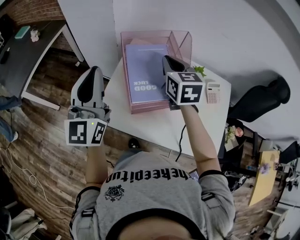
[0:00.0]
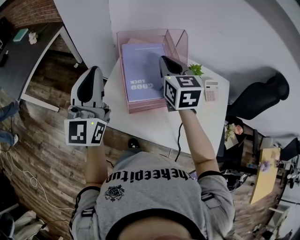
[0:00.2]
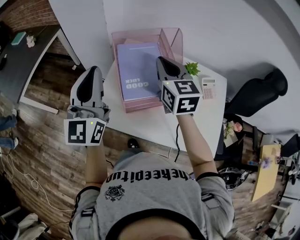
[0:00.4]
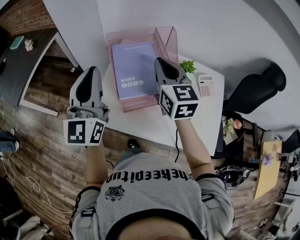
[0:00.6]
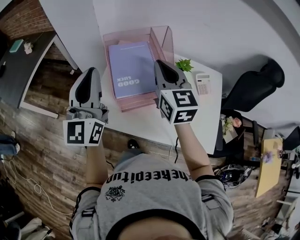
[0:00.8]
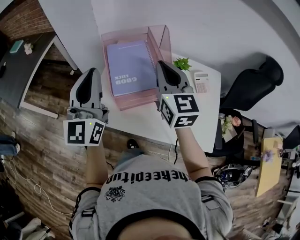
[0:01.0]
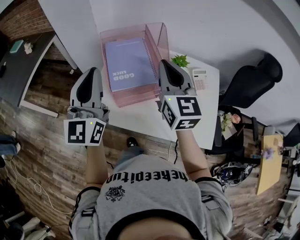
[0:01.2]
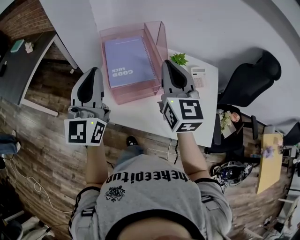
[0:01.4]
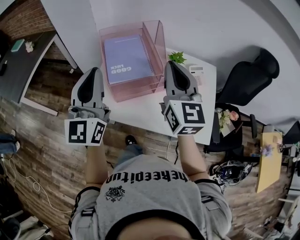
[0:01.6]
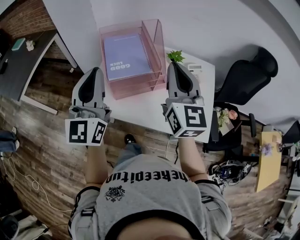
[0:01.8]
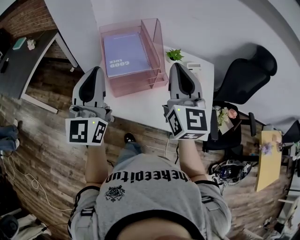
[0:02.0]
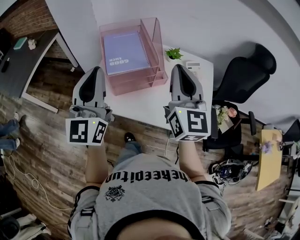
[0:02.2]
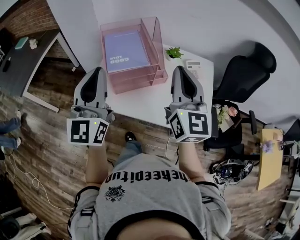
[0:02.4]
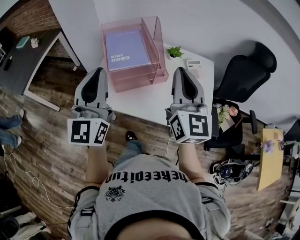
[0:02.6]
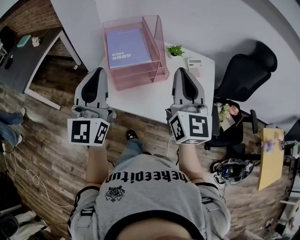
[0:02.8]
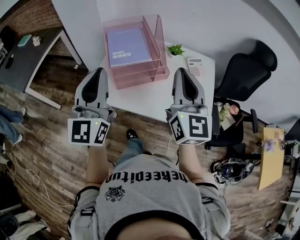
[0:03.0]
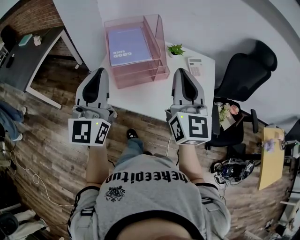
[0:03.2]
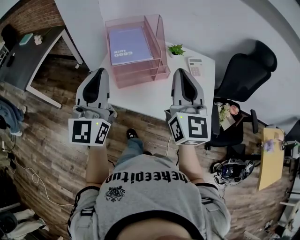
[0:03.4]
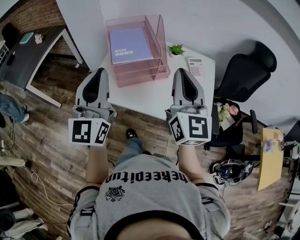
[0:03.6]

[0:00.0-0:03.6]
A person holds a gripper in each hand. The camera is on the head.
0:00.0 to 0:01.8: The right gripper travels backward, to the right and upward by some 25 cm, and turns by about 30 degrees. Meanwhile the left gripper is displaced backward and to the right by approximately 15 cm.
0:01.8 to 0:03.6: The grippers both shift backward by some 10 cm.

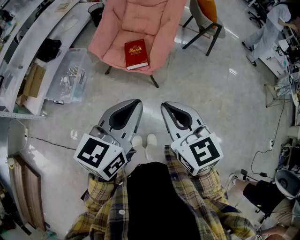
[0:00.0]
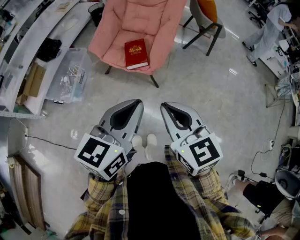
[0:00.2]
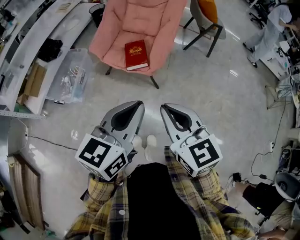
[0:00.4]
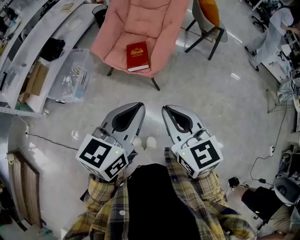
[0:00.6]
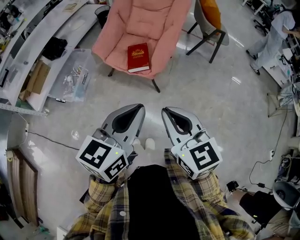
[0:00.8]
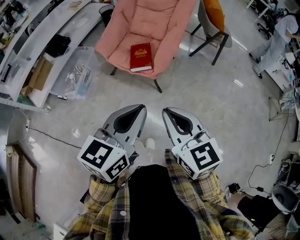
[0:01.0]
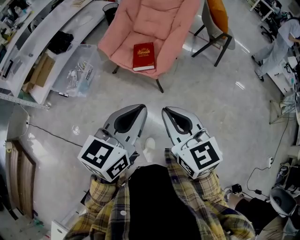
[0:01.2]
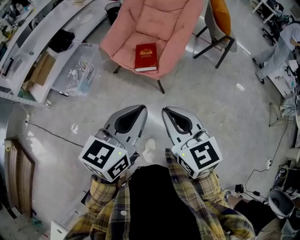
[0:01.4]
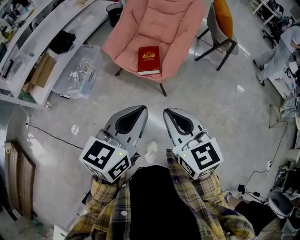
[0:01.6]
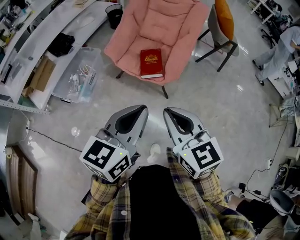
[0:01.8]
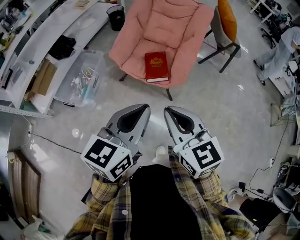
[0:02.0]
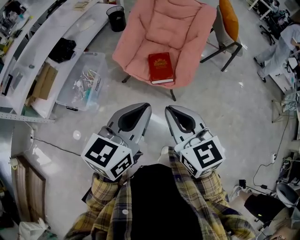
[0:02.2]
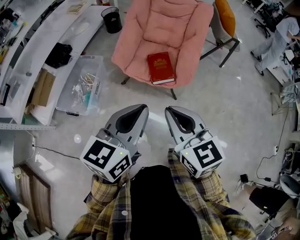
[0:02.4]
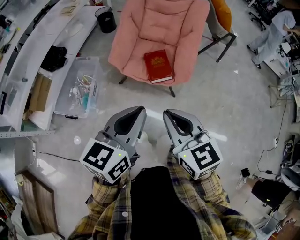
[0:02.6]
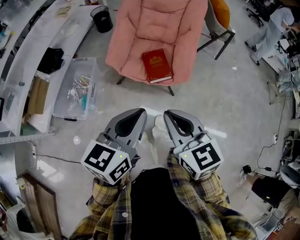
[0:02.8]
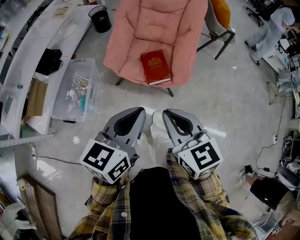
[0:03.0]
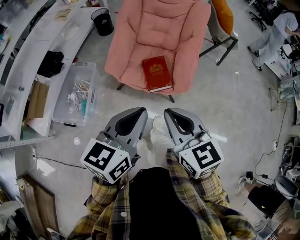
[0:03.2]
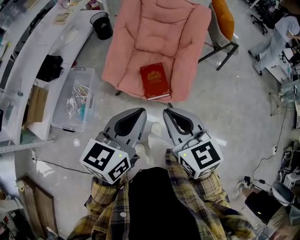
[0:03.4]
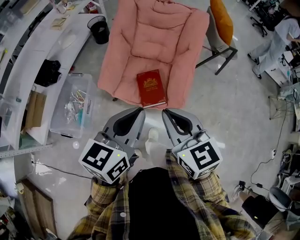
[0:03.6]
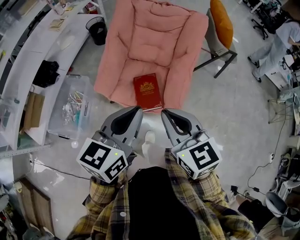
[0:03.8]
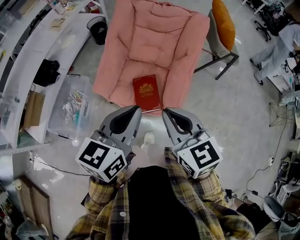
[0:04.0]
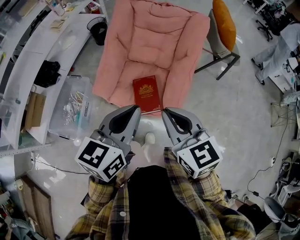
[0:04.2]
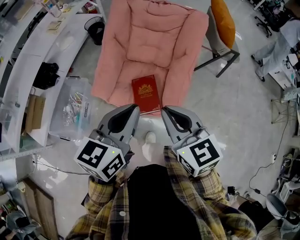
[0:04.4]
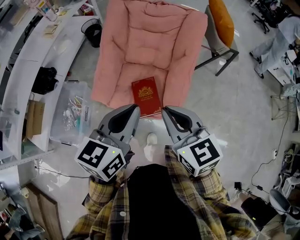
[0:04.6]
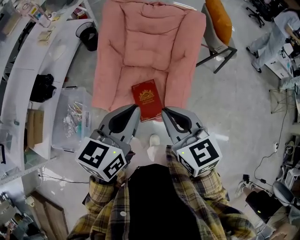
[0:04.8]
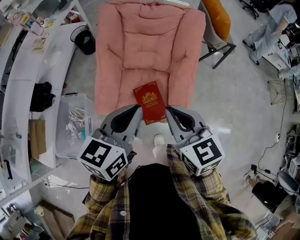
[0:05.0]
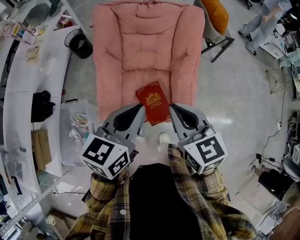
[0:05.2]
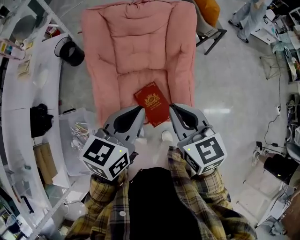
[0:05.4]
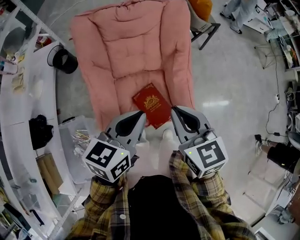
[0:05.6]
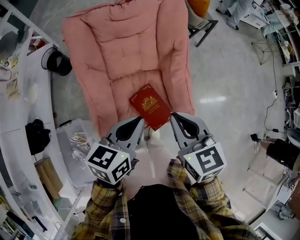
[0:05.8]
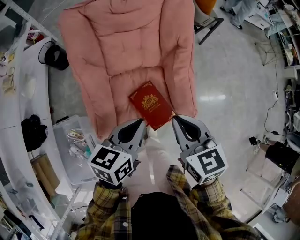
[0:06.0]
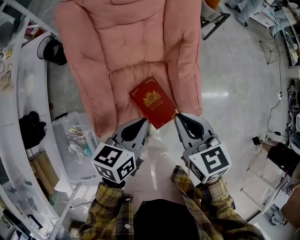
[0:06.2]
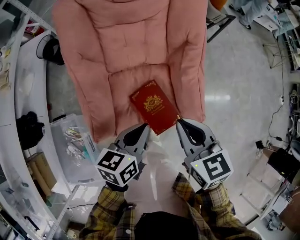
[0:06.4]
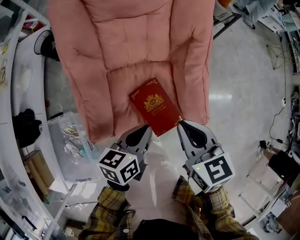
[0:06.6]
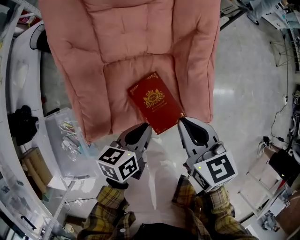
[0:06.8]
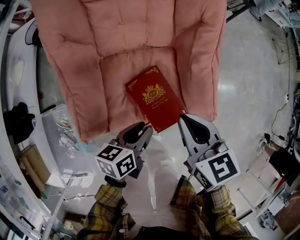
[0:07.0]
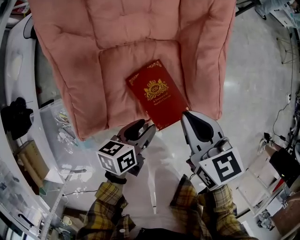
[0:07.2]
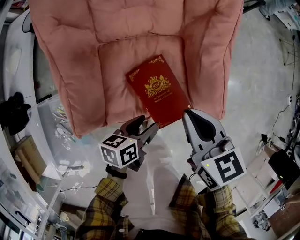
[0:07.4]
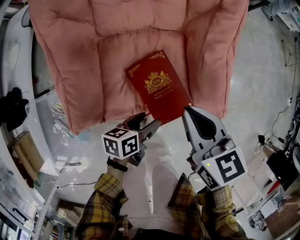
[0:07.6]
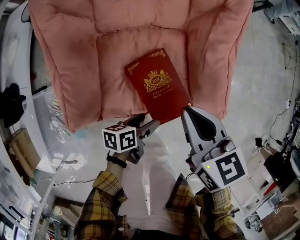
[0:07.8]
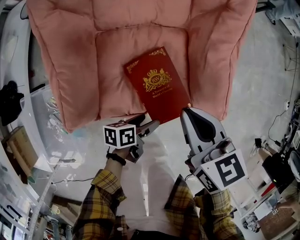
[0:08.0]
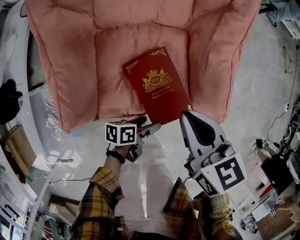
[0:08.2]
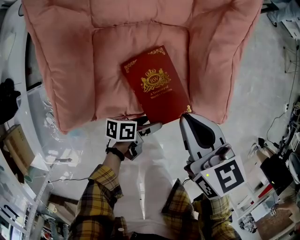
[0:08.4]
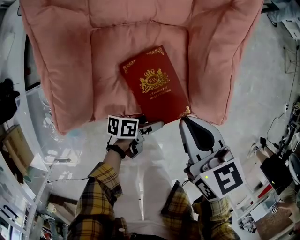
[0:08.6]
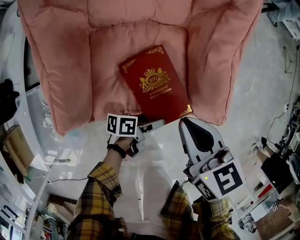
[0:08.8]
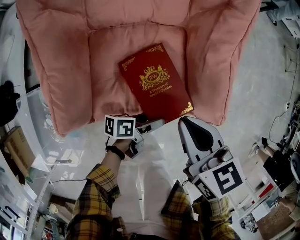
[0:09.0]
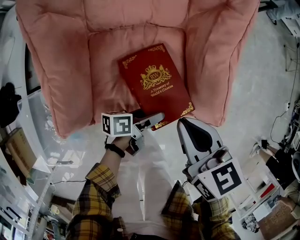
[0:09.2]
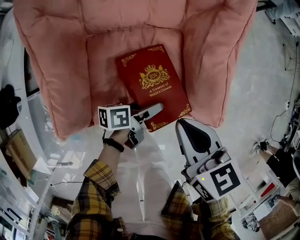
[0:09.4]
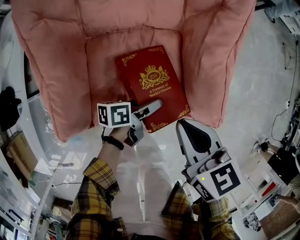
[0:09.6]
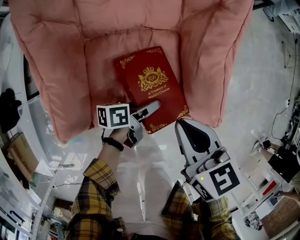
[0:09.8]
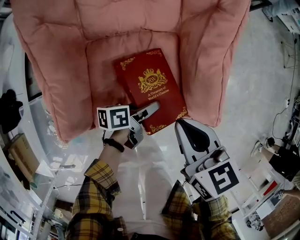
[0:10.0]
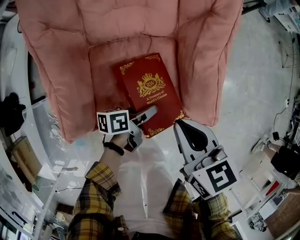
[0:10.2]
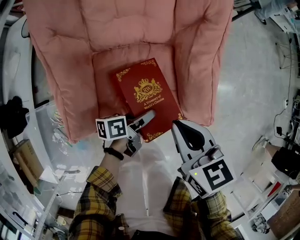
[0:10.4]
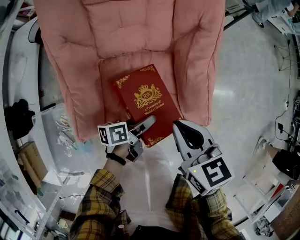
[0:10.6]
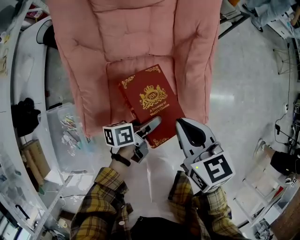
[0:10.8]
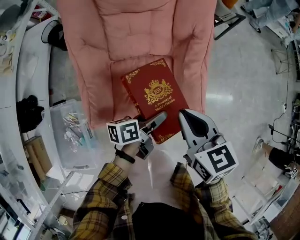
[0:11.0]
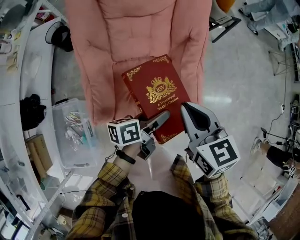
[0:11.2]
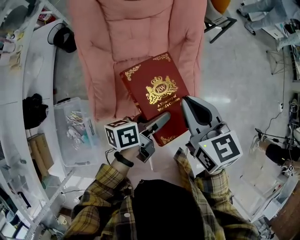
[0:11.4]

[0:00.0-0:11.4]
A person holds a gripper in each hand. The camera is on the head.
0:00.0 to 0:01.4: There are only small adjustments of the grippers.
0:01.4 to 0:02.8: The two grippers go approximately 25 cm to the left and forward.
0:02.8 to 0:04.2: Both grippers travel together forward and to the right, roughly 25 cm.
0:04.2 to 0:05.6: The right gripper shifts by some 15 cm, and swivels some 30 degrees. The left gripper ends up some 20 cm from where it was, and swivels approximately 30 degrees.
0:05.6 to 0:07.2: The grippers both shift downward by about 30 cm. The left gripper swivels about 30 degrees, and opens its fingers.
0:07.2 to 0:08.6: The left gripper heads downward and to the right, covering about 15 cm, turns by approximately 30 degrees, and opens, while the right gripper moves some 5 cm.
0:08.6 to 0:10.0: The left gripper travels forward and to the left by about 10 cm.
0:10.0 to 0:11.4: Both grippers move upward, some 30 cm.

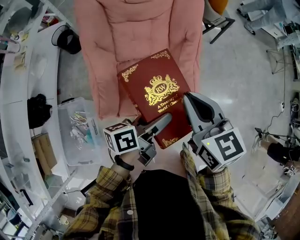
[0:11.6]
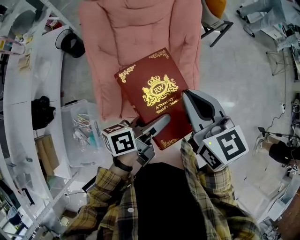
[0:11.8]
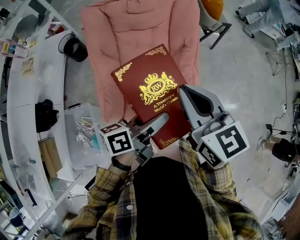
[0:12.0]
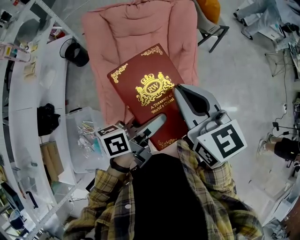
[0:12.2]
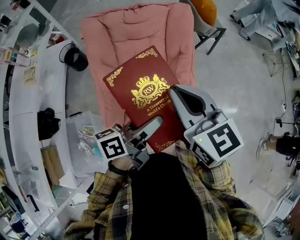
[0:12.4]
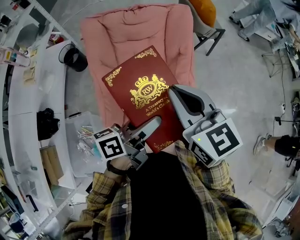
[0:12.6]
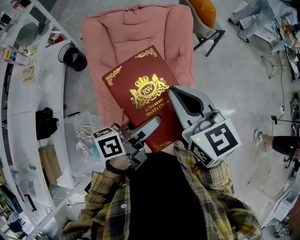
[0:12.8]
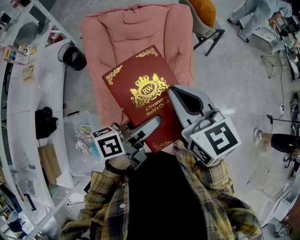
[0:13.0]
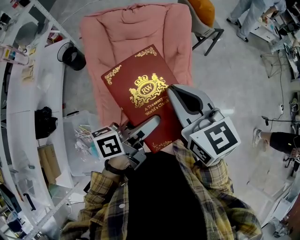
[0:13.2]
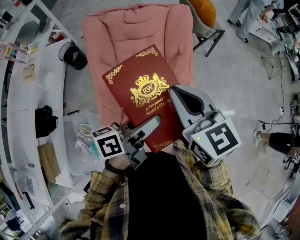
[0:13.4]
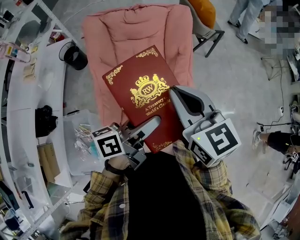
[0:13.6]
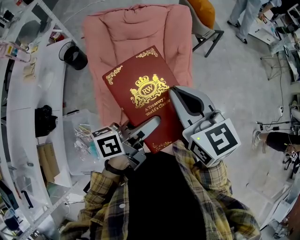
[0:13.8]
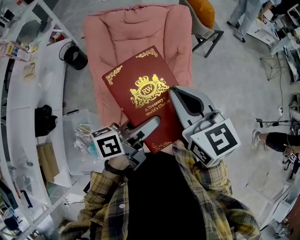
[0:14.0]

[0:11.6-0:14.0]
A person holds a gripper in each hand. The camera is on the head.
0:11.6 to 0:12.8: The two grippers go some 10 cm upward.
0:12.8 to 0:14.0: Neither gripper changes place.

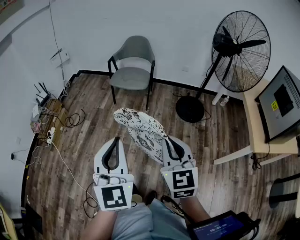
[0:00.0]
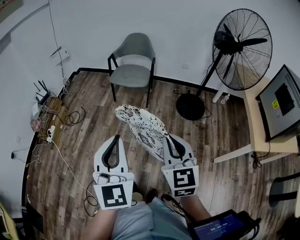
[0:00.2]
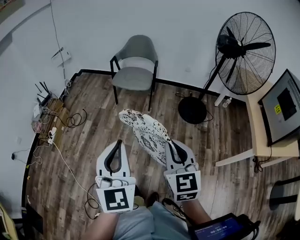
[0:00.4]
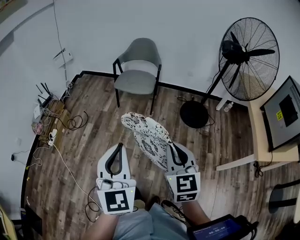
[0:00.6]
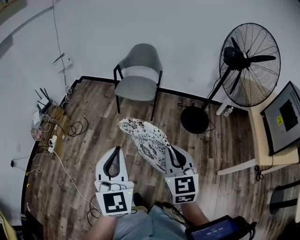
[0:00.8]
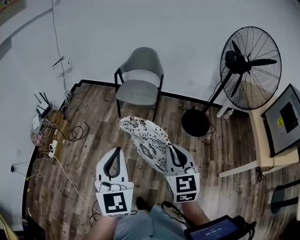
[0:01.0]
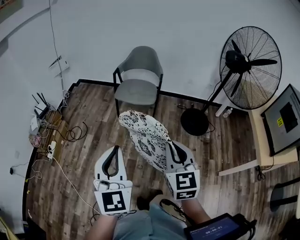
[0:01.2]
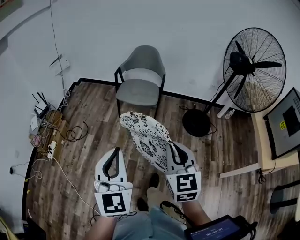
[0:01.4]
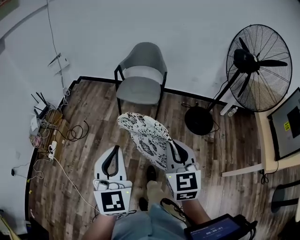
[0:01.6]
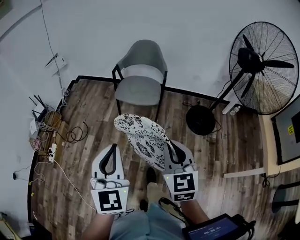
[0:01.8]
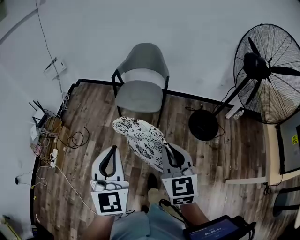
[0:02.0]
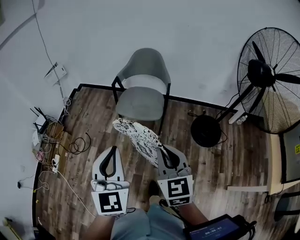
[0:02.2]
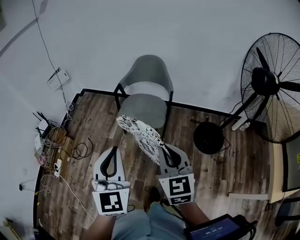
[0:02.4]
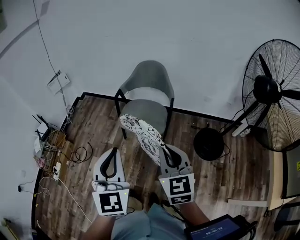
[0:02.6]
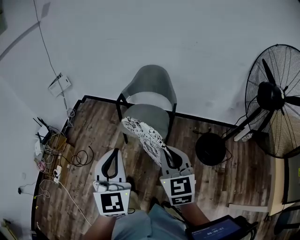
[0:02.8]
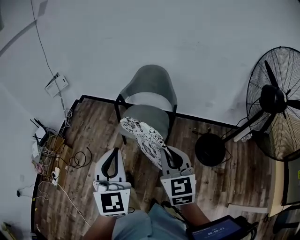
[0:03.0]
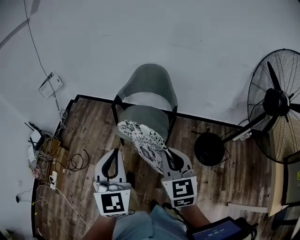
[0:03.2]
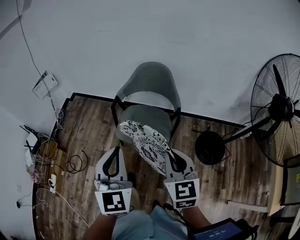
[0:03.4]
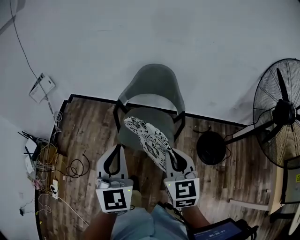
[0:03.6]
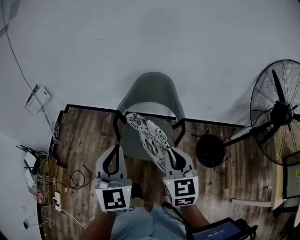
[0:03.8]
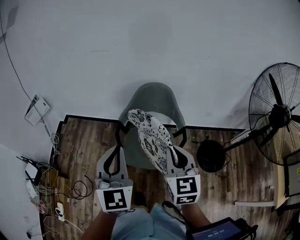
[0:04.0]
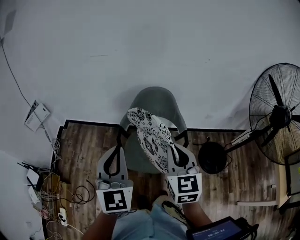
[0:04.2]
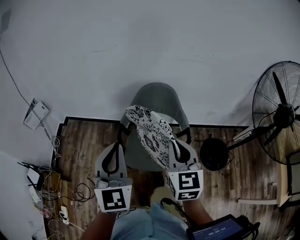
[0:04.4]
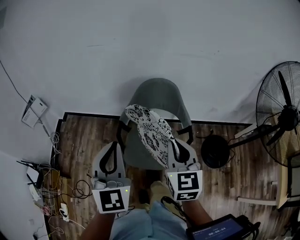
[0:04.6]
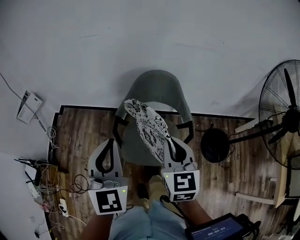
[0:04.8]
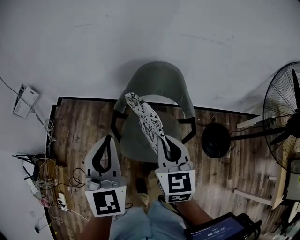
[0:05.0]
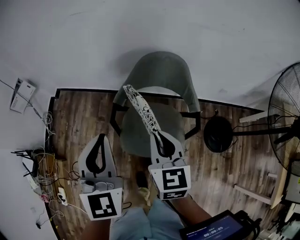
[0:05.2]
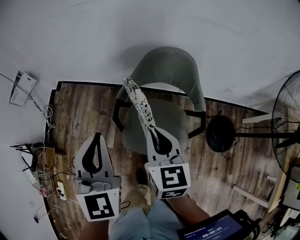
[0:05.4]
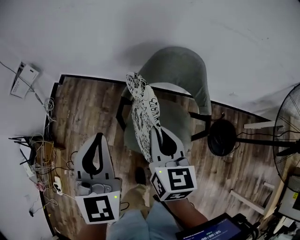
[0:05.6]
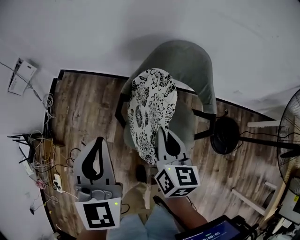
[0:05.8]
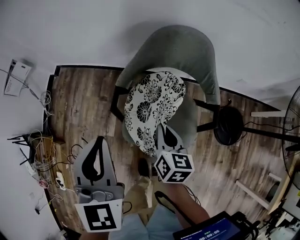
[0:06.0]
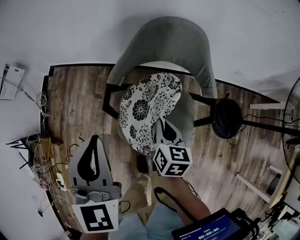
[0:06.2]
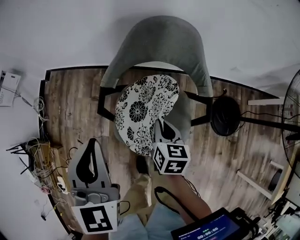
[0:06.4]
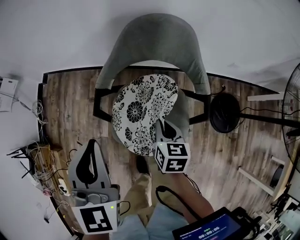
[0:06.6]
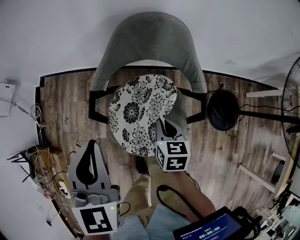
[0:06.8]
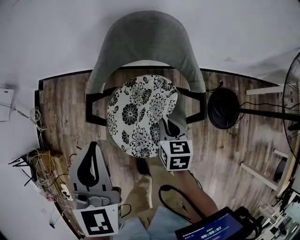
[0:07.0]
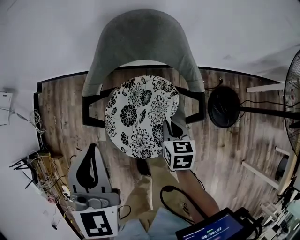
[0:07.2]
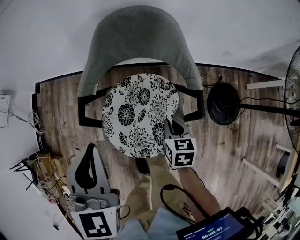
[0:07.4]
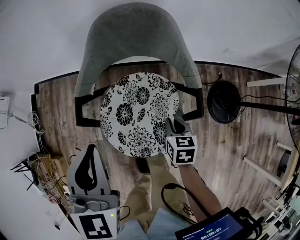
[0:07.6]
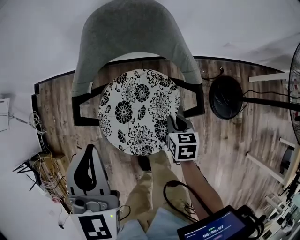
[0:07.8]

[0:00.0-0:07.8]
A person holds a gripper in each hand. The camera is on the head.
0:00.0 to 0:01.6: The two grippers go approximately 20 cm forward and to the left.
0:01.6 to 0:03.2: The two grippers go some 40 cm forward.
0:03.2 to 0:04.6: The left gripper travels forward and to the left by about 30 cm; the right gripper goes roughly 25 cm forward.
0:04.6 to 0:06.2: The left gripper travels downward and forward by approximately 20 cm; the right gripper shifts some 30 cm downward, and changes its angle by some 40 degrees.
0:06.2 to 0:07.8: The right gripper heads to the right and downward, covering roughly 20 cm. Meanwhile the left gripper heads to the right, covering some 10 cm.
